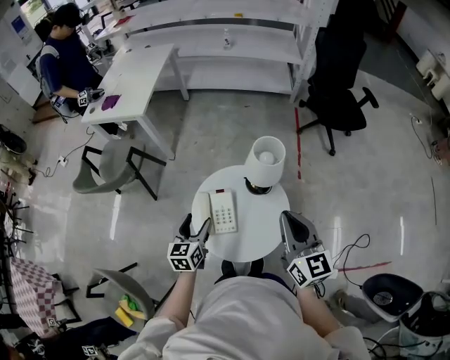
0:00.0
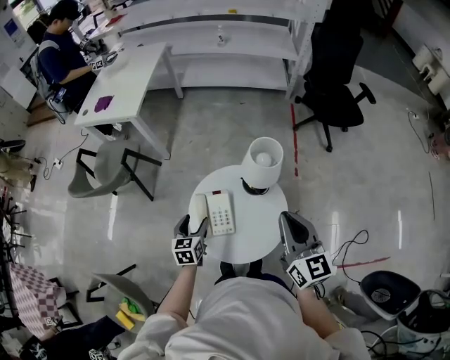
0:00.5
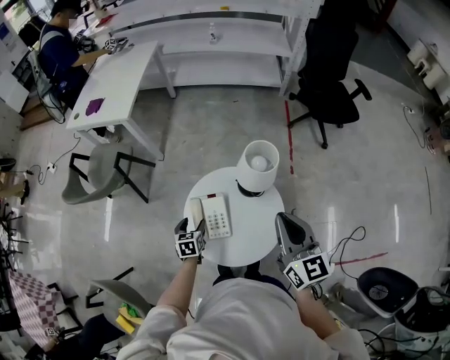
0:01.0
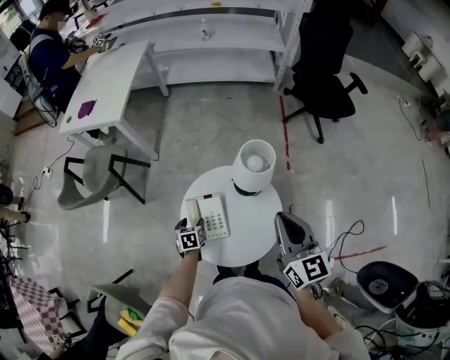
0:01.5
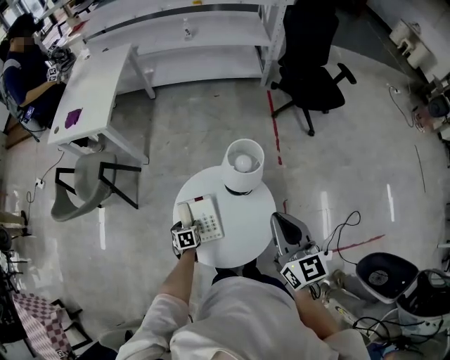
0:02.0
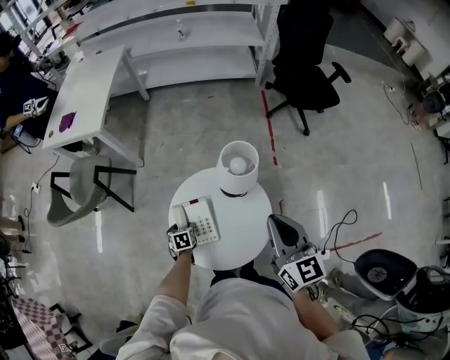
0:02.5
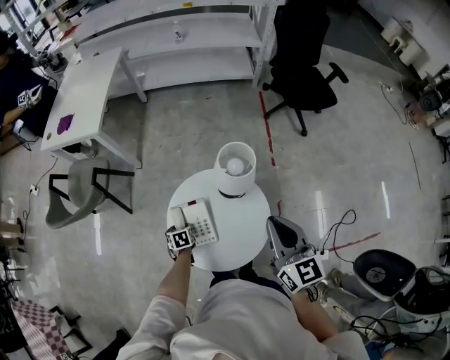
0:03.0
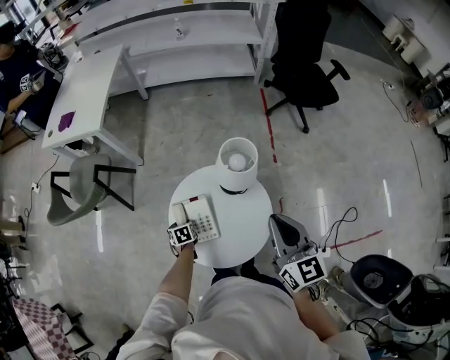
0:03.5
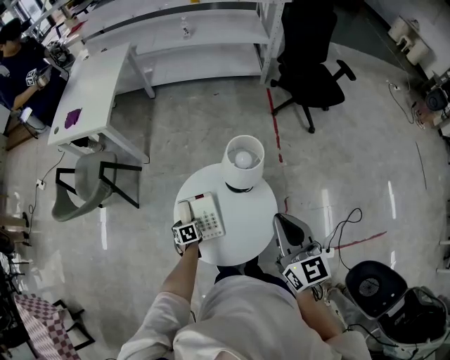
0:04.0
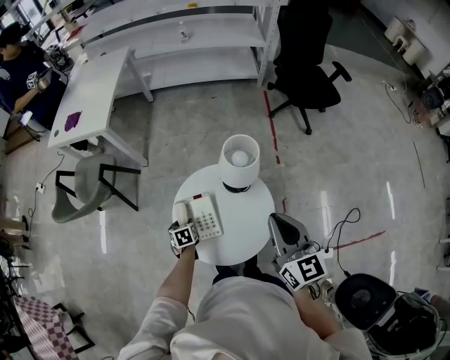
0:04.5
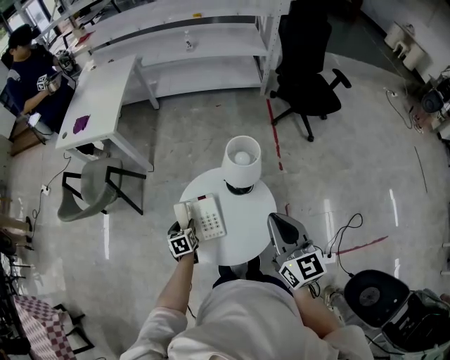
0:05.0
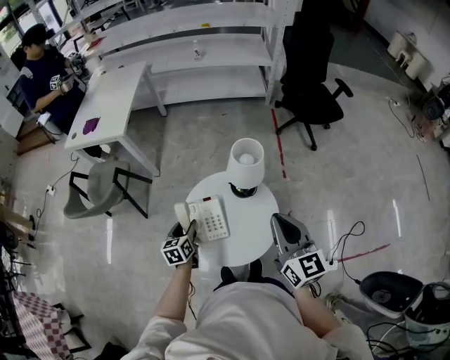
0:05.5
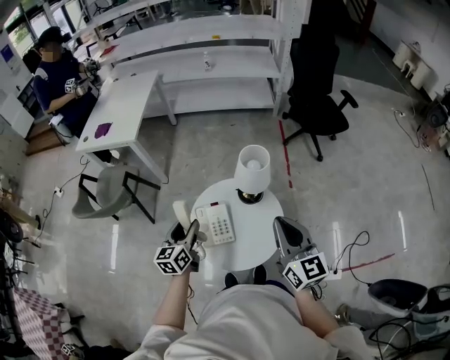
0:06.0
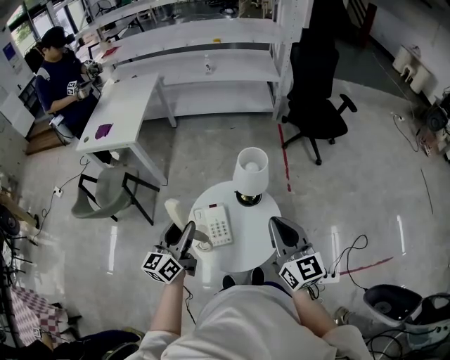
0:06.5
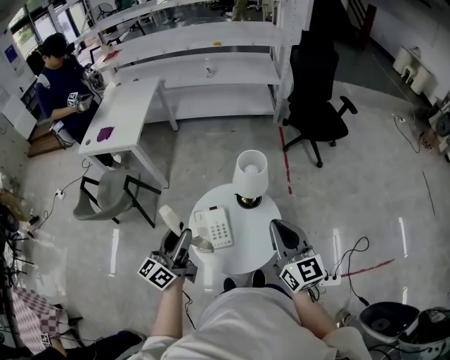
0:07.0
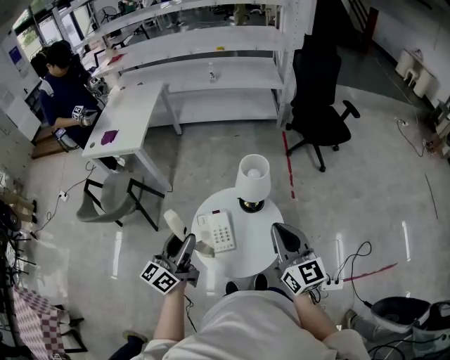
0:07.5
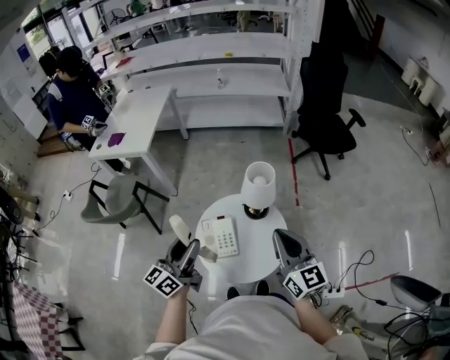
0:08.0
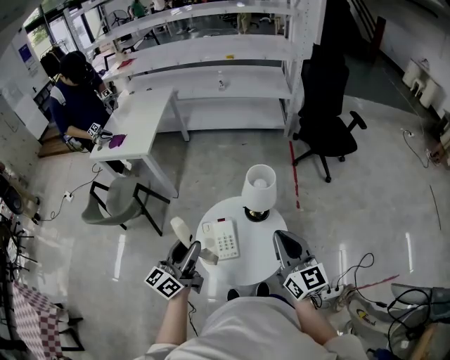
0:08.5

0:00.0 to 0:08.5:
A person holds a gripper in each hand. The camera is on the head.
0:00.0 to 0:02.0: The left gripper heads downward, covering some 25 cm, and tips its fingers downward by roughly 40 degrees.
0:02.0 to 0:04.0: There are only small adjustments of the grippers.
0:04.0 to 0:06.5: The right gripper changes place by approximately 5 cm. Meanwhile the left gripper heads upward, covering roughly 35 cm, and tilts its fingers some 60 degrees upward.
0:06.5 to 0:08.5: There are only small adjustments of the grippers.

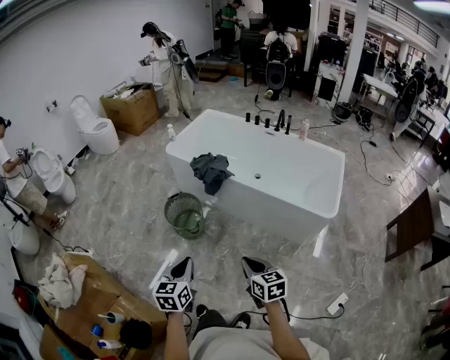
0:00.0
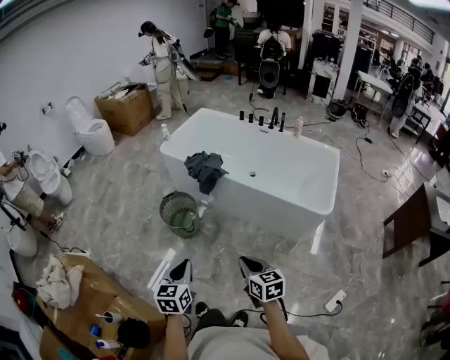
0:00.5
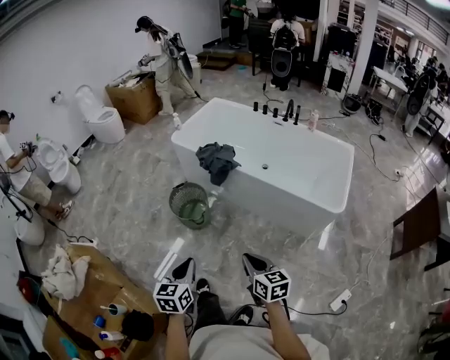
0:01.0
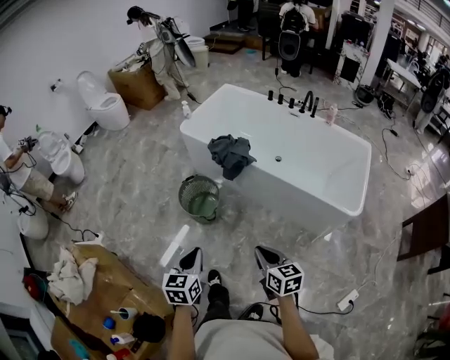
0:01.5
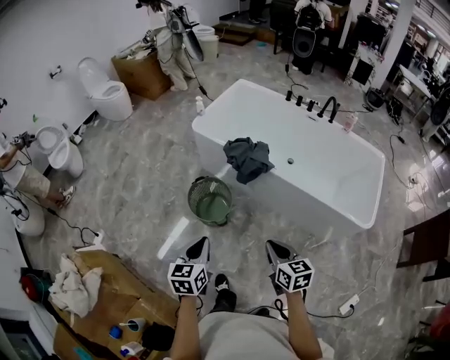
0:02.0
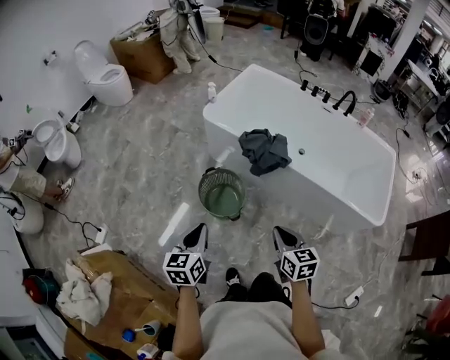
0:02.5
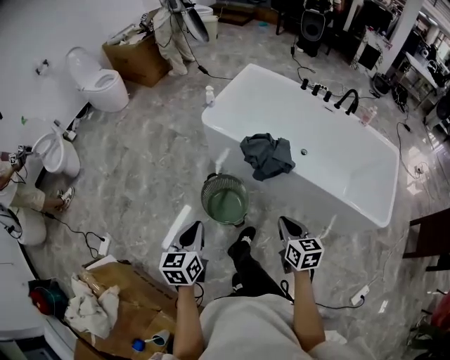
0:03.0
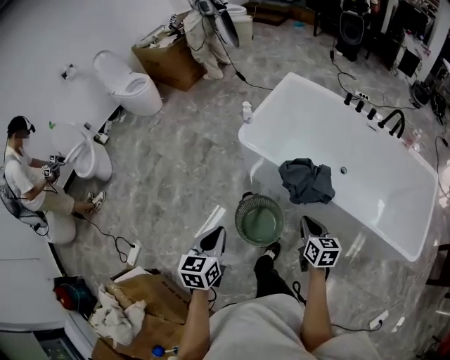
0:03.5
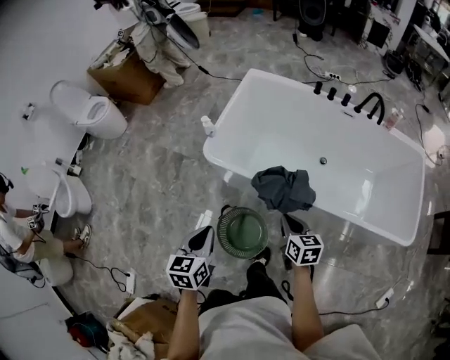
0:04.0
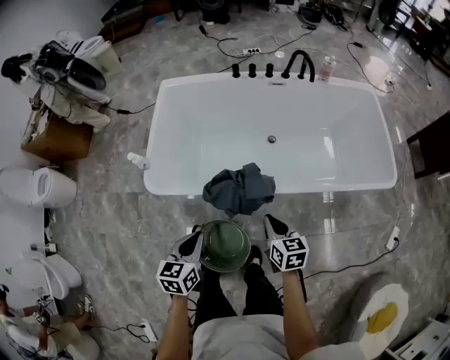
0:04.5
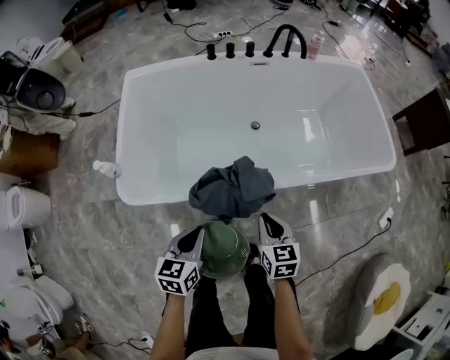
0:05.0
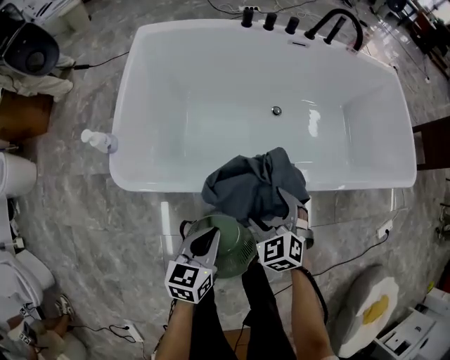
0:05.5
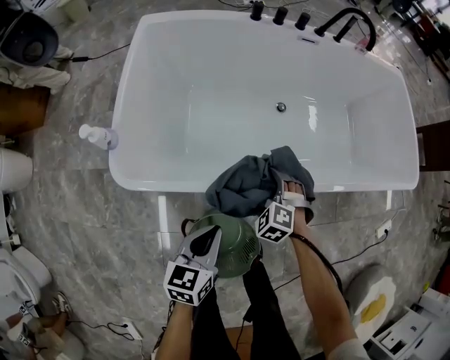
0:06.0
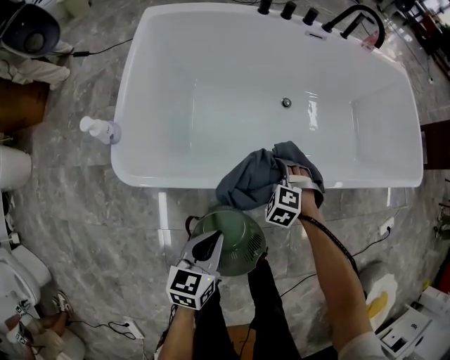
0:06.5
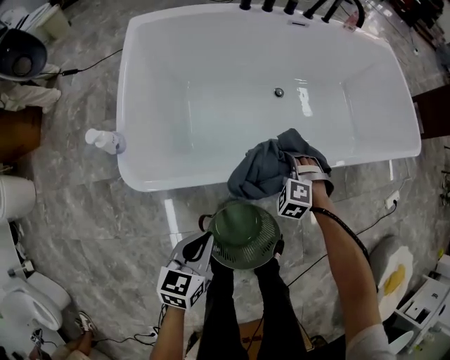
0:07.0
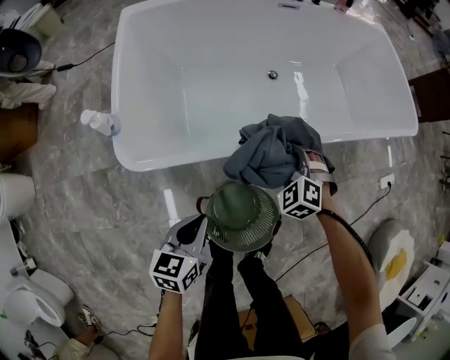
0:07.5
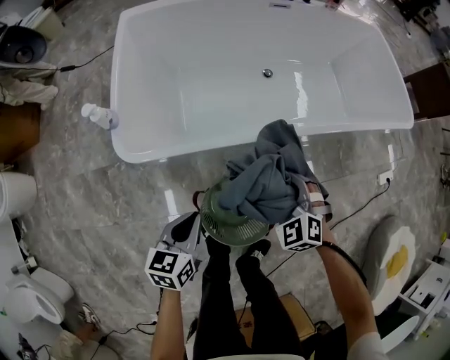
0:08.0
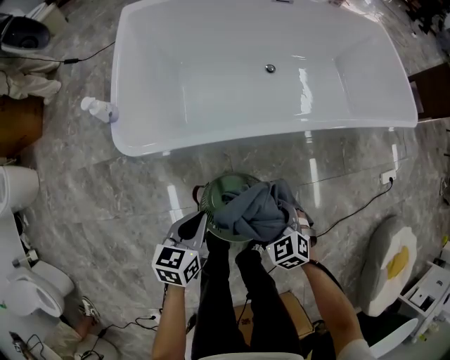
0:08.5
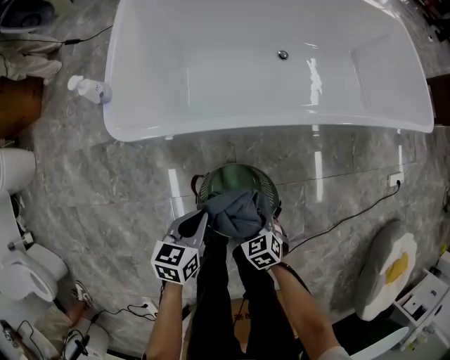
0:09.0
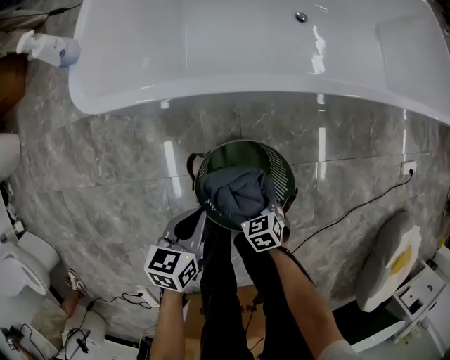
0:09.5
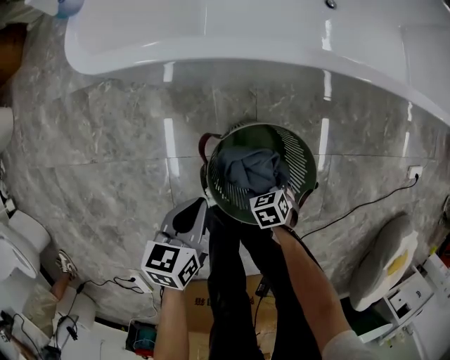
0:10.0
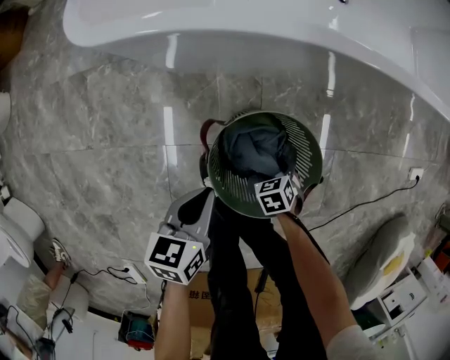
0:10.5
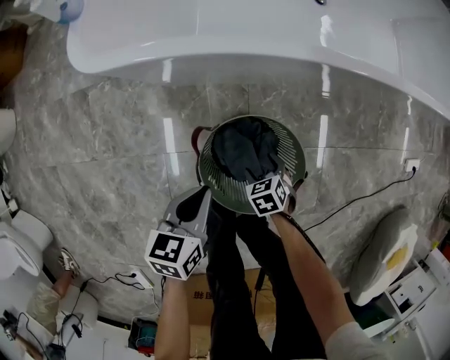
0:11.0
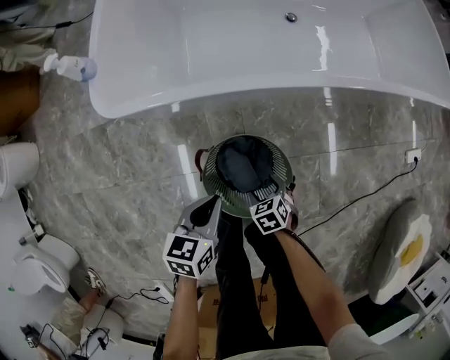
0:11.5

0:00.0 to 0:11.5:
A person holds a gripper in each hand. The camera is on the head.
0:00.0 to 0:02.0: Both grippers move forward and to the left, roughly 25 cm.
0:02.0 to 0:04.0: The two grippers travel together, forward, roughly 40 cm.
0:04.0 to 0:06.0: The grippers both shift downward by about 30 cm. The left gripper turns by about 40 degrees. The right gripper rolls counterclockwise, seen from behind, by about 50 degrees, and opens.
0:06.0 to 0:07.5: The right gripper moves upward, approximately 5 cm, and closes. Meanwhile the left gripper shifts about 10 cm backward and to the left.
0:07.5 to 0:09.5: The right gripper heads downward and backward, covering about 40 cm, and rotates around the line of its fingers by roughly 40 degrees, clockwise from behind; the left gripper shifts roughly 20 cm downward and backward.
0:09.5 to 0:11.5: The right gripper moves some 10 cm downward and comes back. The left gripper shifts some 5 cm upward.

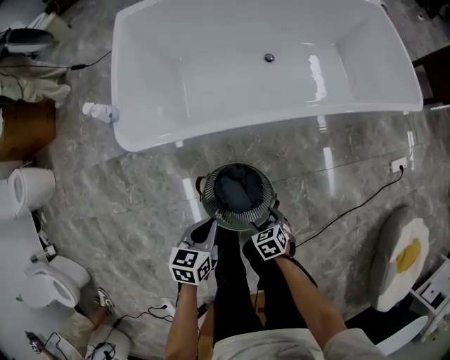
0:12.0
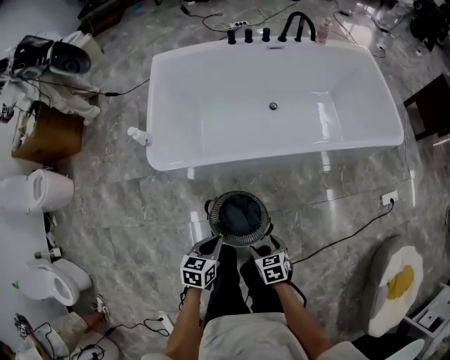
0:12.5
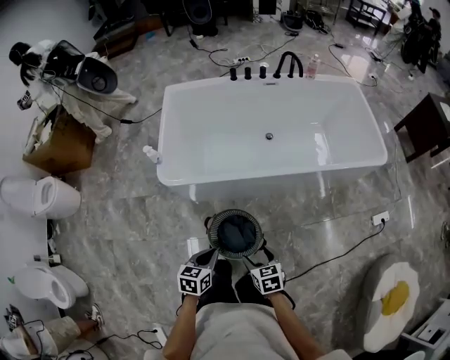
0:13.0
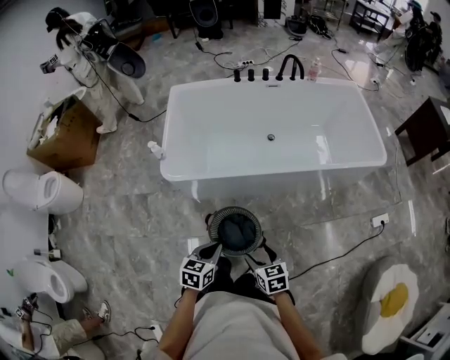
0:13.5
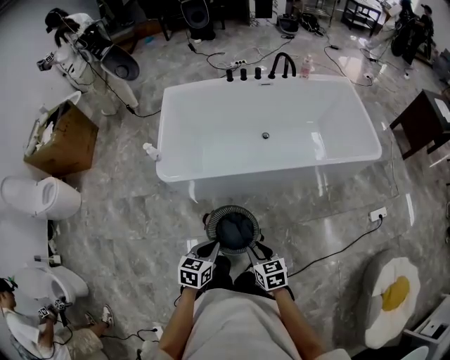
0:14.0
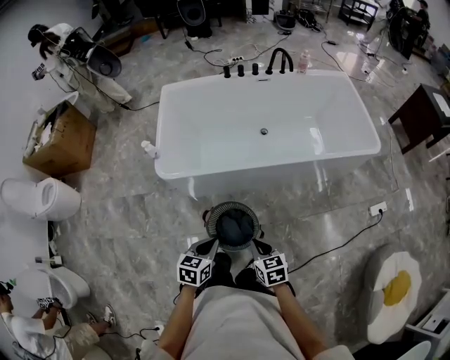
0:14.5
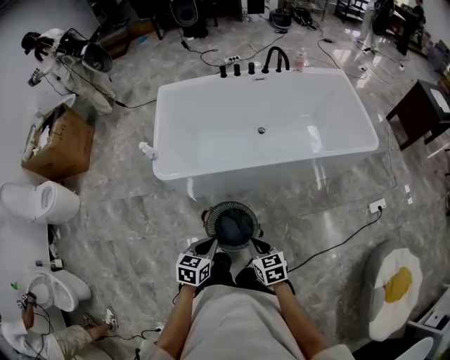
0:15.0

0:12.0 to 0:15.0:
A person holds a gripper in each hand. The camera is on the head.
0:12.0 to 0:13.5: The left gripper travels upward and backward by approximately 20 cm. Meanwhile the right gripper heads upward, covering some 30 cm, and changes its angle by approximately 30 degrees.
0:13.5 to 0:15.0: The right gripper closes its fingers.

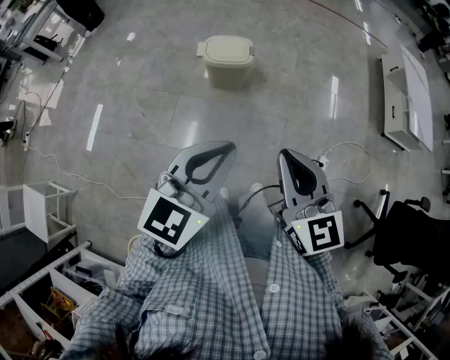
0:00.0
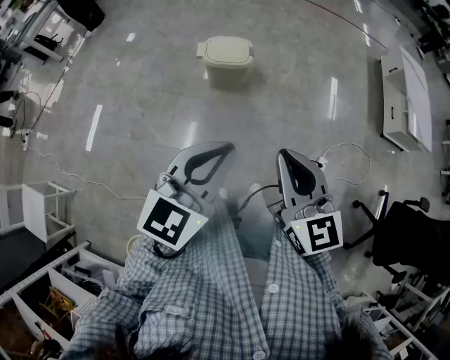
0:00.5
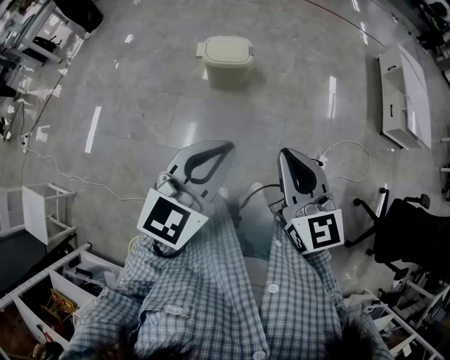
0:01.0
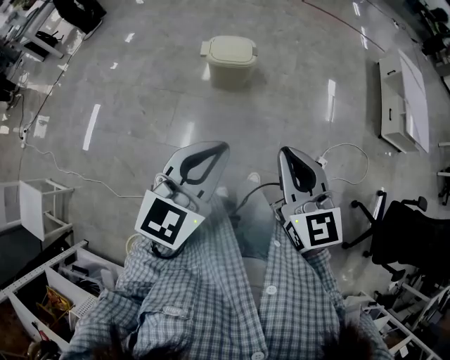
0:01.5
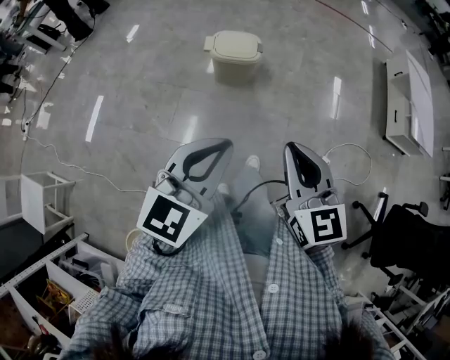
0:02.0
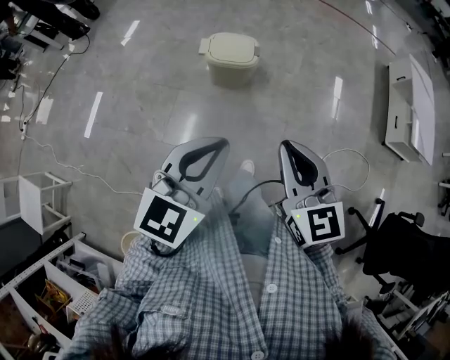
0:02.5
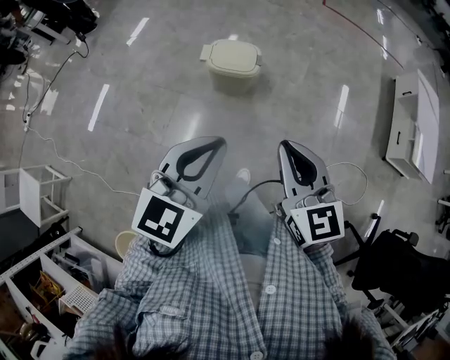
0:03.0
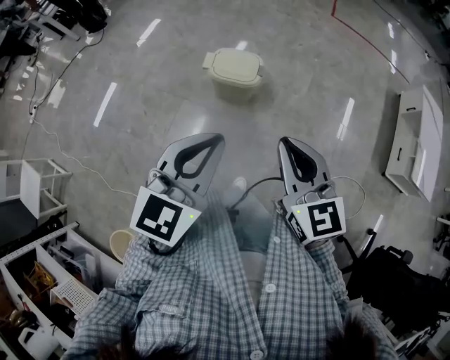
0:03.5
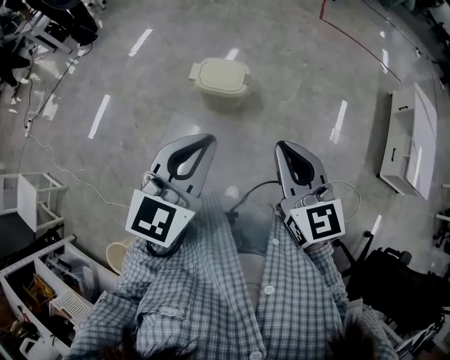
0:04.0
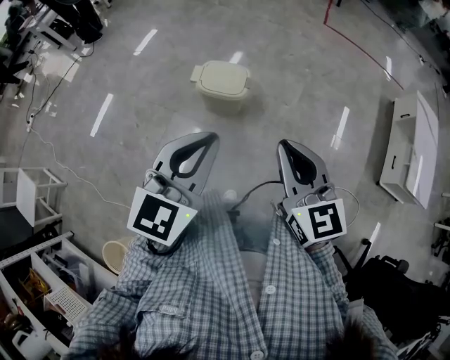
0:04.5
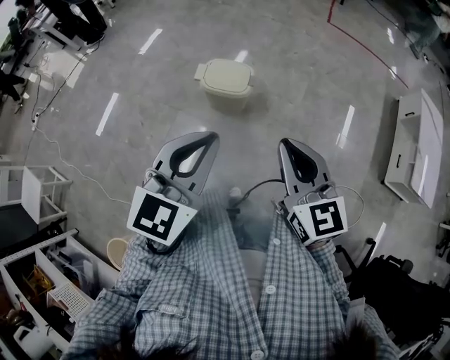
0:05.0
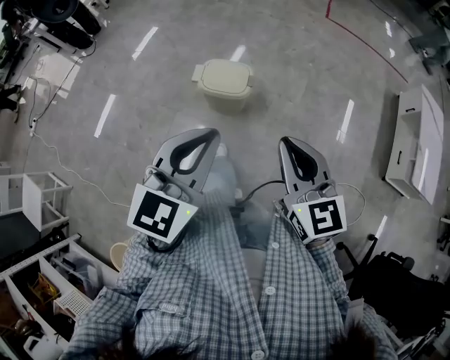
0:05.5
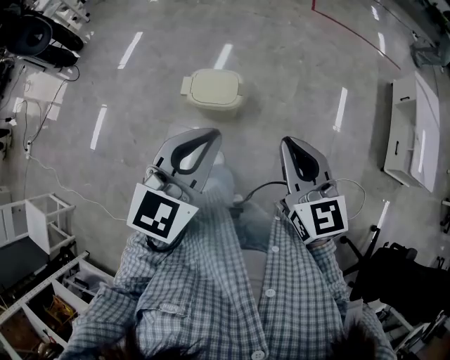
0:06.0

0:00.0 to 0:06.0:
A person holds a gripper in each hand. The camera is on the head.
0:00.0 to 0:02.0: The grippers move only a little.
0:02.0 to 0:04.0: Both grippers move forward and to the right, approximately 20 cm.
0:04.0 to 0:06.0: Both grippers travel together forward, roughly 10 cm.
